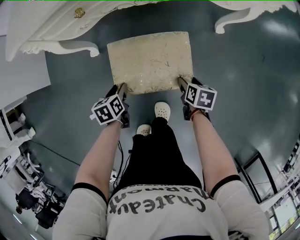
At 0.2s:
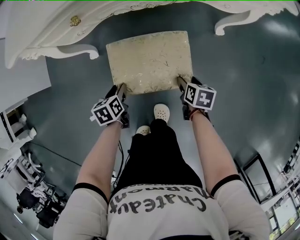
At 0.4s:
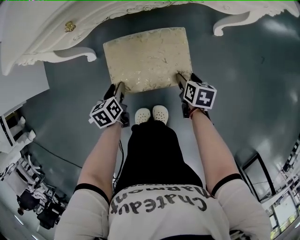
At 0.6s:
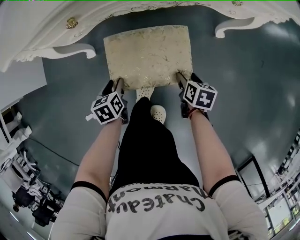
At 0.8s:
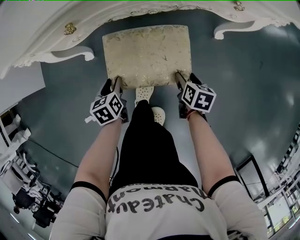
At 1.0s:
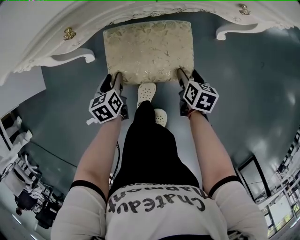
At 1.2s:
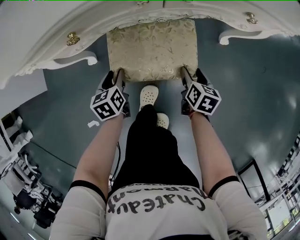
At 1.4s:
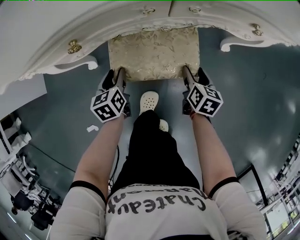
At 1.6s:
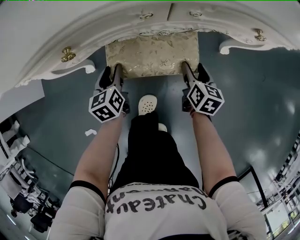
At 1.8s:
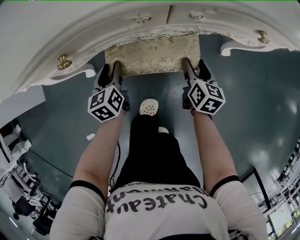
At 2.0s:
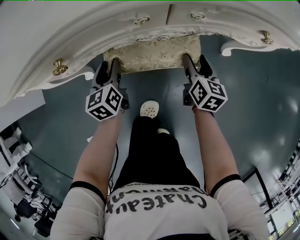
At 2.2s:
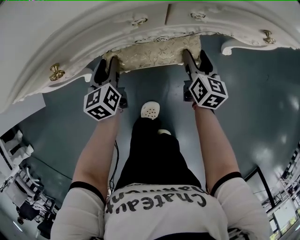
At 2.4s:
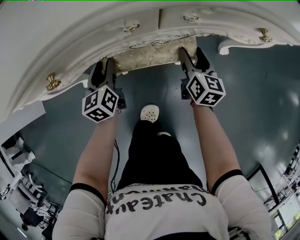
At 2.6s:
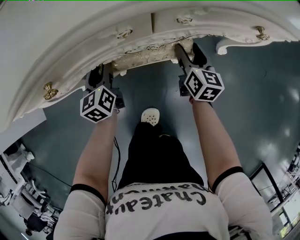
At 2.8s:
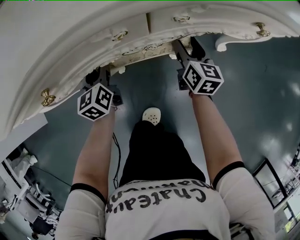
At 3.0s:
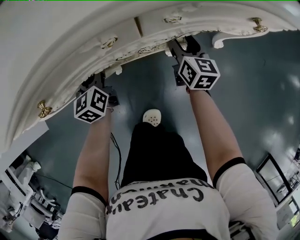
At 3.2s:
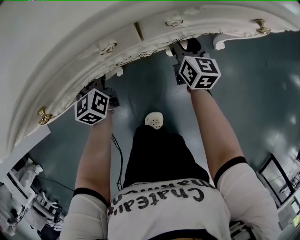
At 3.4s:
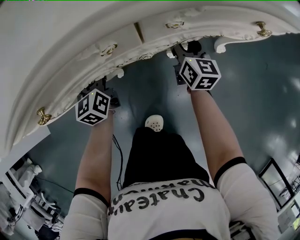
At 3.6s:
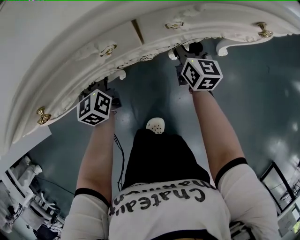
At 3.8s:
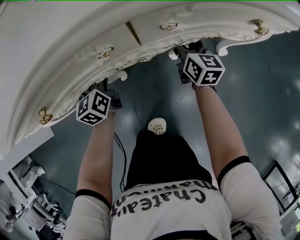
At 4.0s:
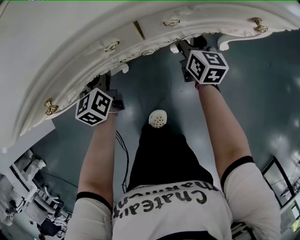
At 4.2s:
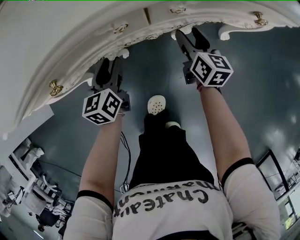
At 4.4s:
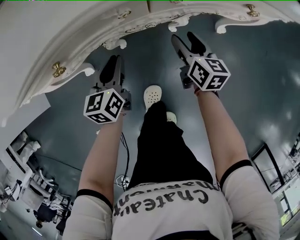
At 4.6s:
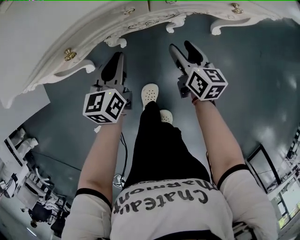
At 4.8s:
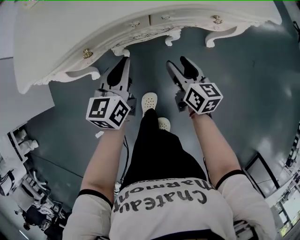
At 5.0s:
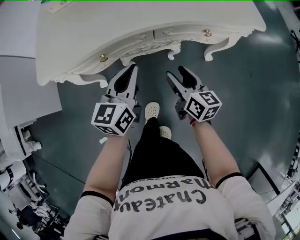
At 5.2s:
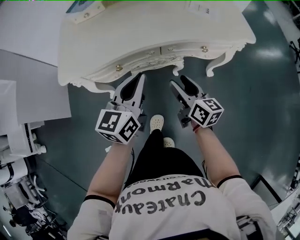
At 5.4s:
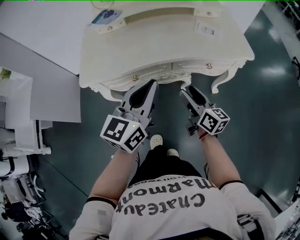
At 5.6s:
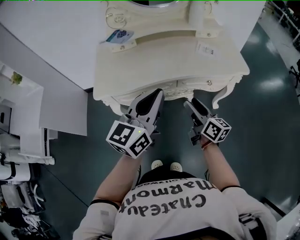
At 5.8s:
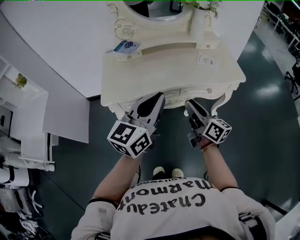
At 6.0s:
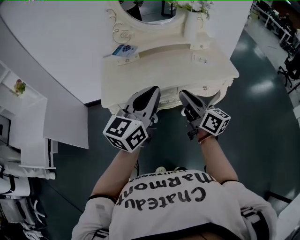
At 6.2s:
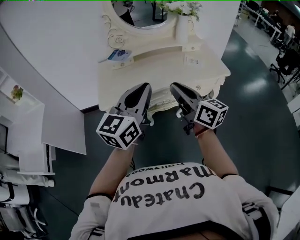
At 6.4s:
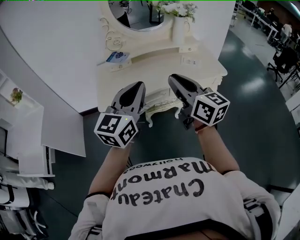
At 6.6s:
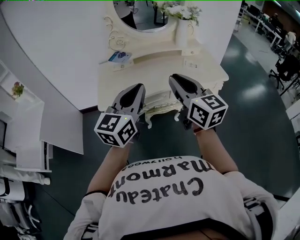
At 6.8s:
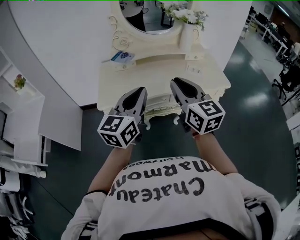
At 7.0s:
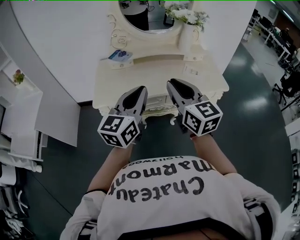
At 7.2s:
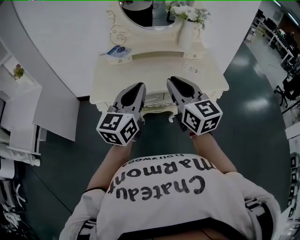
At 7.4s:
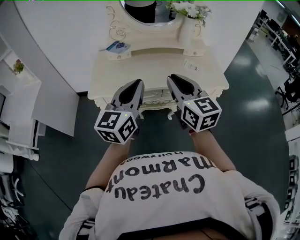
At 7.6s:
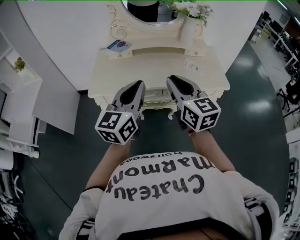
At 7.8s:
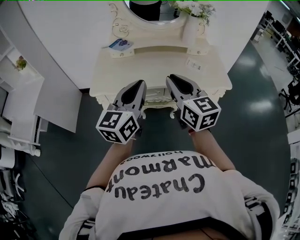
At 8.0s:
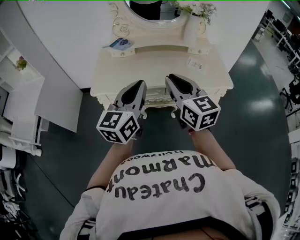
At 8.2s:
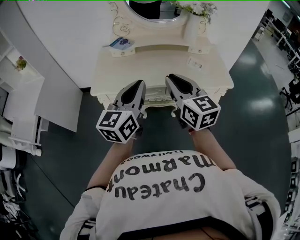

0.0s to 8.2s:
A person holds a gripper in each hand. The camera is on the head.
0.0s to 1.6s: Both grippers move forward, roughly 25 cm. The left gripper swivels approximately 20 degrees. The right gripper changes its angle by approximately 30 degrees.
1.6s to 3.2s: The grippers both shift forward by roughly 15 cm. The right gripper swivels some 20 degrees.
3.2s to 5.0s: Both grippers travel together upward and backward, some 35 cm. The right gripper changes its angle by approximately 20 degrees, while the left gripper swivels some 20 degrees, and closes its fingers.
5.0s to 6.6s: Both grippers move upward, approximately 40 cm. The right gripper swivels approximately 30 degrees, and closes up. The left gripper turns by some 20 degrees.
6.6s to 8.2s: The right gripper moves roughly 5 cm. Meanwhile the left gripper heads to the right, covering approximately 5 cm.

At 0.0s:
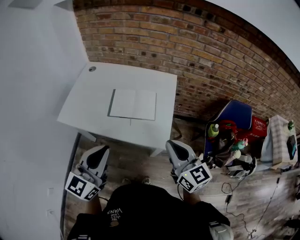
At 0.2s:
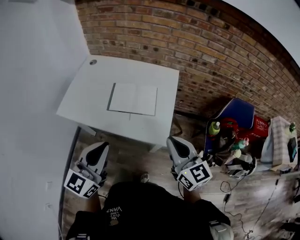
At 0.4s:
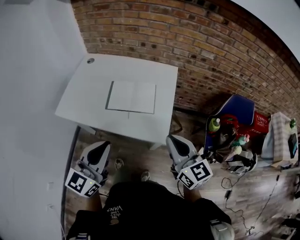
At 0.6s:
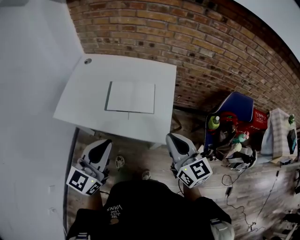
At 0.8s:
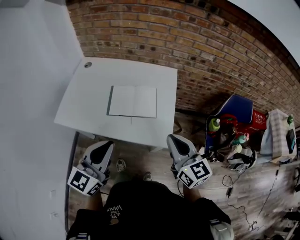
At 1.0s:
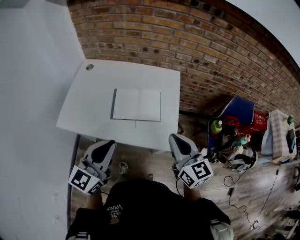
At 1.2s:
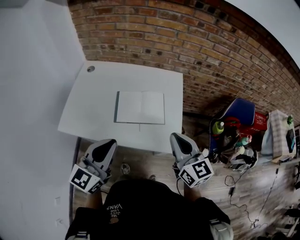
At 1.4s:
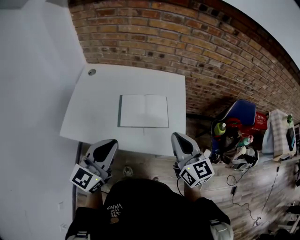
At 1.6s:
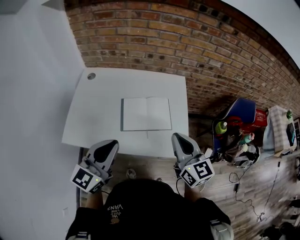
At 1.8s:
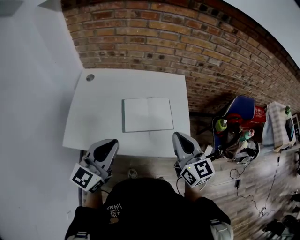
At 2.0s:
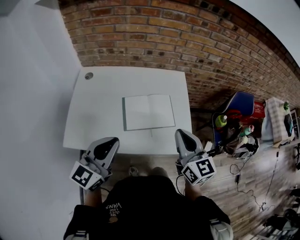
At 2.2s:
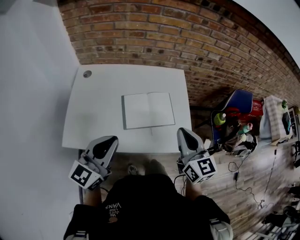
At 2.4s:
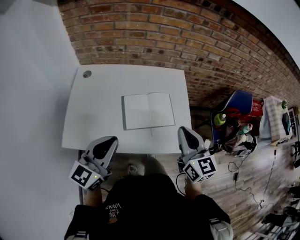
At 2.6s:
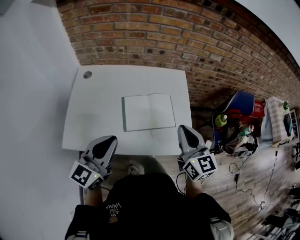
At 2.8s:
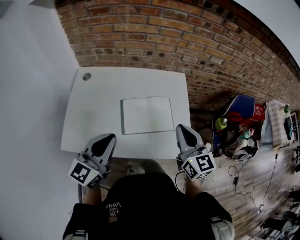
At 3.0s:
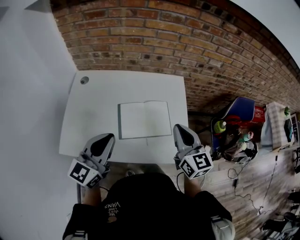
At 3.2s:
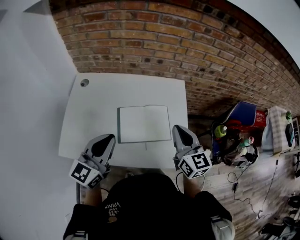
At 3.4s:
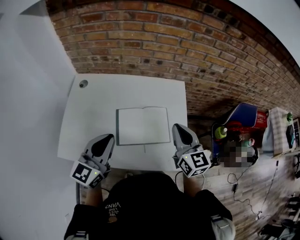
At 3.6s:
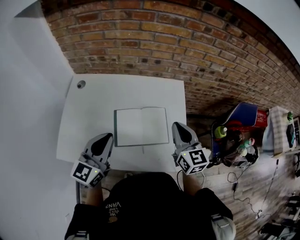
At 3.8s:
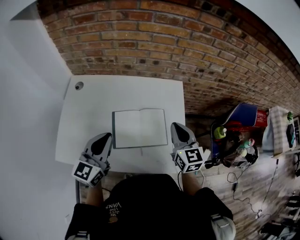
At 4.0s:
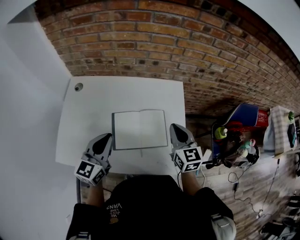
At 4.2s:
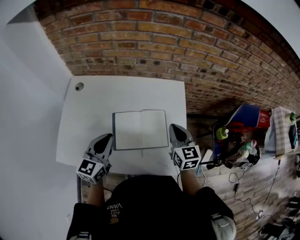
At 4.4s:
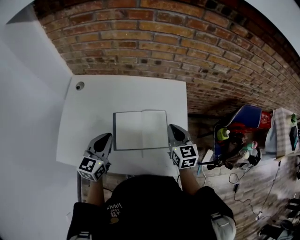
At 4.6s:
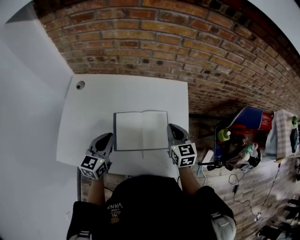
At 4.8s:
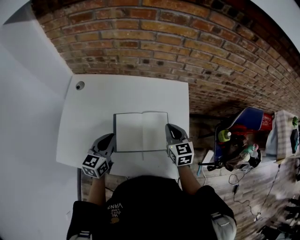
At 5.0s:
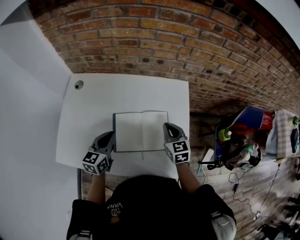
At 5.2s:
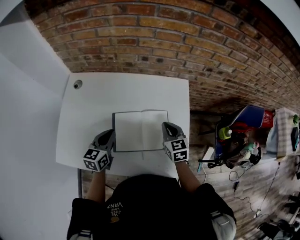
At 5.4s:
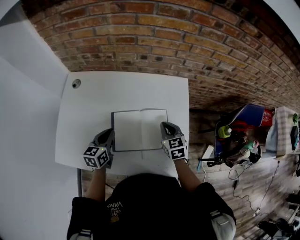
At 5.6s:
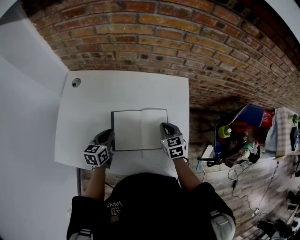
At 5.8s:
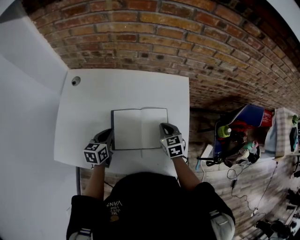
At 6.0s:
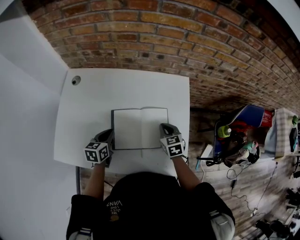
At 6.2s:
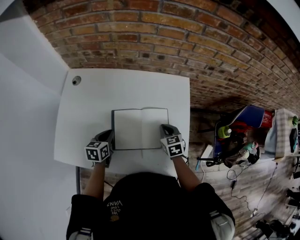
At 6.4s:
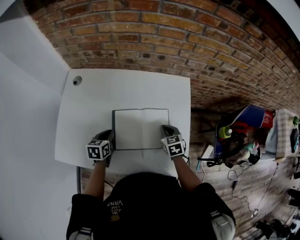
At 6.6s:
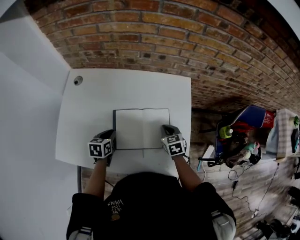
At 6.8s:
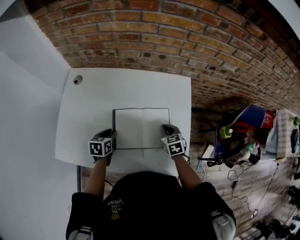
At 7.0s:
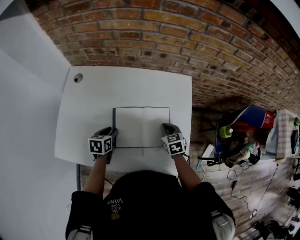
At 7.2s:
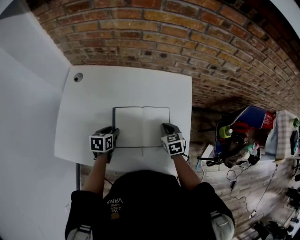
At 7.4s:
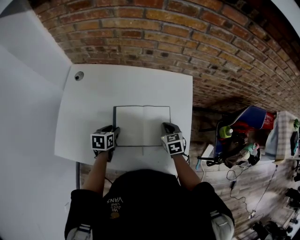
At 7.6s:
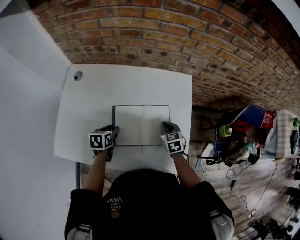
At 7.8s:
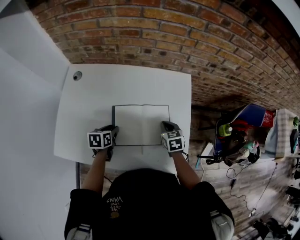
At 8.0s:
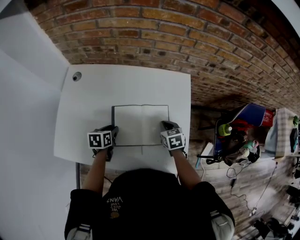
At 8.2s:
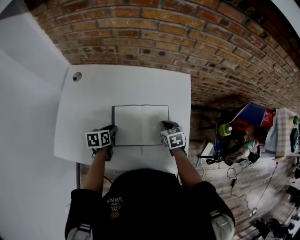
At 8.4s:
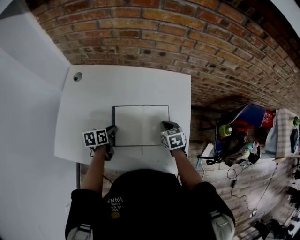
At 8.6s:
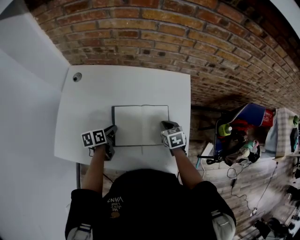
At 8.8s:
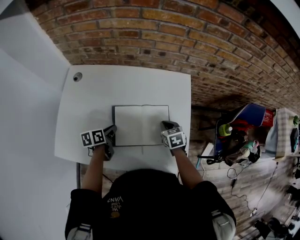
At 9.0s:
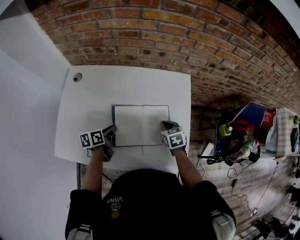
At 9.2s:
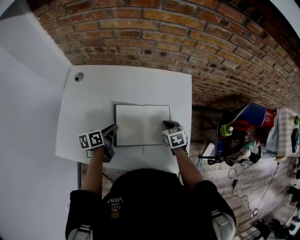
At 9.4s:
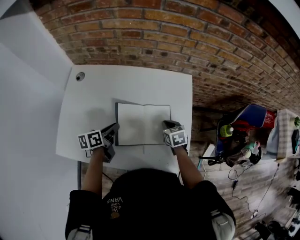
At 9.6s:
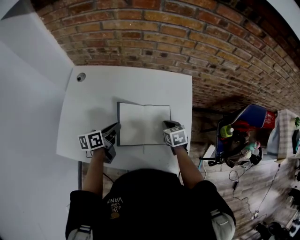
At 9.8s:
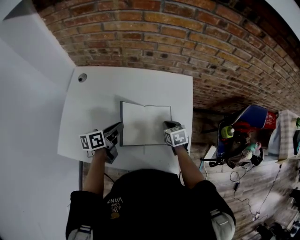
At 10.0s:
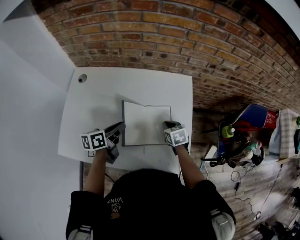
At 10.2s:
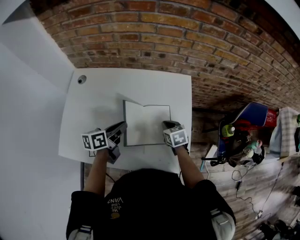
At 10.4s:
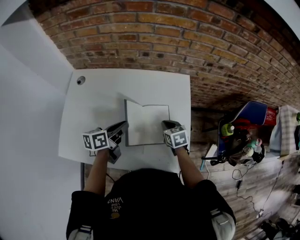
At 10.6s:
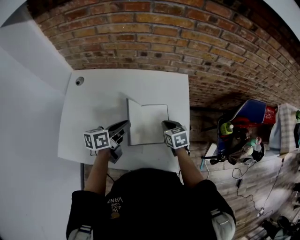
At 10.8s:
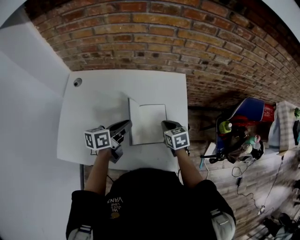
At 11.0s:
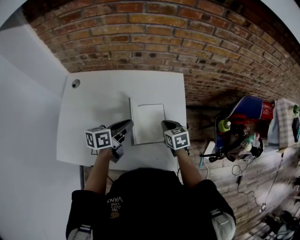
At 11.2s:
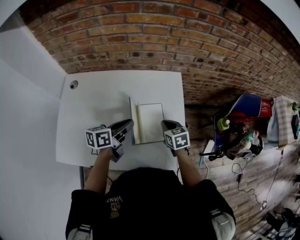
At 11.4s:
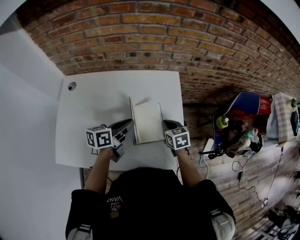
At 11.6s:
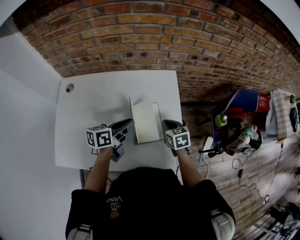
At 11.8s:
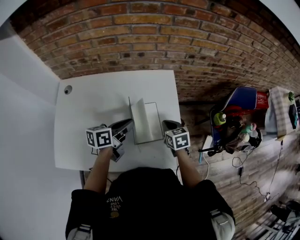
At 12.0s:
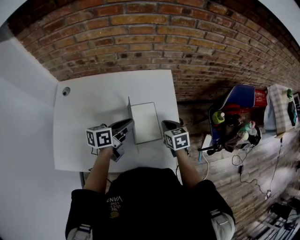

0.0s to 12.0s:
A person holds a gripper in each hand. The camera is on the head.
0.0s to 1.6s: The grippers both shift forward and to the left by some 20 cm.
1.6s to 3.0s: Both grippers move forward, roughly 10 cm.
3.0s to 4.4s: The grippers both shift downward and forward by approximately 15 cm.
4.4s to 6.0s: The grippers both shift downward by about 15 cm. The right gripper turns by roughly 20 degrees; the left gripper rotates some 30 degrees.
6.0s to 7.6s: The left gripper opens up.
7.6s to 9.0s: The left gripper turns by roughly 20 degrees, and closes up.
9.0s to 10.4s: The left gripper heads upward and to the right, covering approximately 15 cm, and swivels roughly 20 degrees.
10.4s to 12.0s: The grippers both shift to the right by about 5 cm.

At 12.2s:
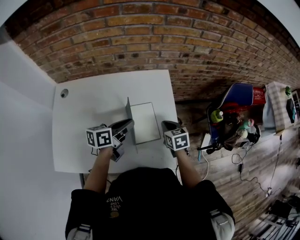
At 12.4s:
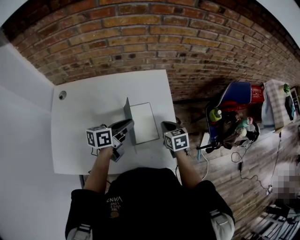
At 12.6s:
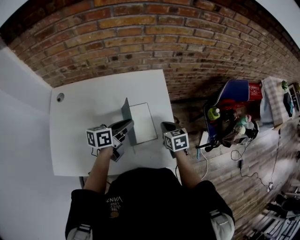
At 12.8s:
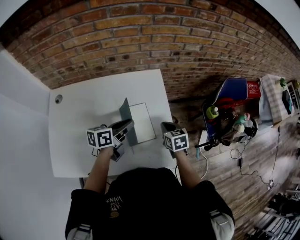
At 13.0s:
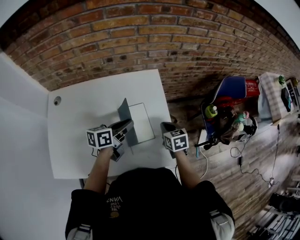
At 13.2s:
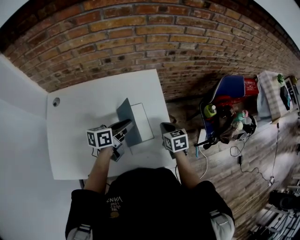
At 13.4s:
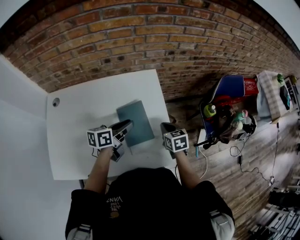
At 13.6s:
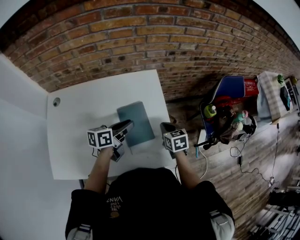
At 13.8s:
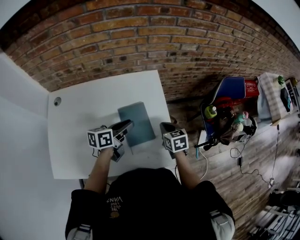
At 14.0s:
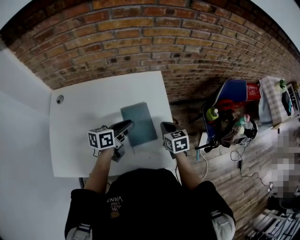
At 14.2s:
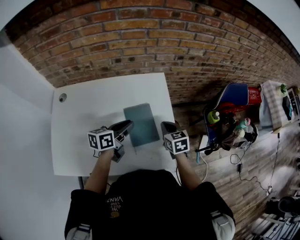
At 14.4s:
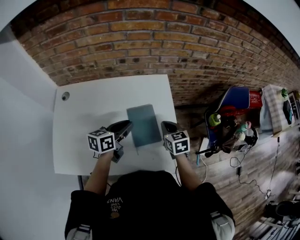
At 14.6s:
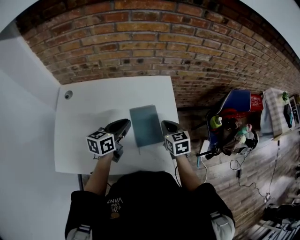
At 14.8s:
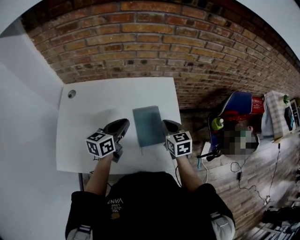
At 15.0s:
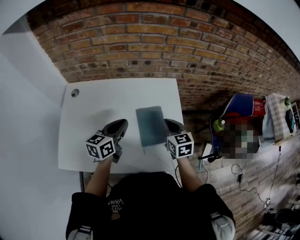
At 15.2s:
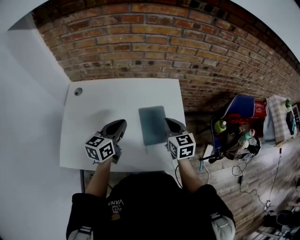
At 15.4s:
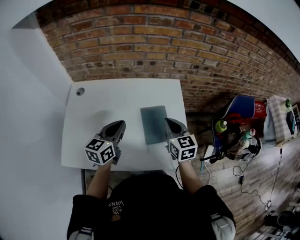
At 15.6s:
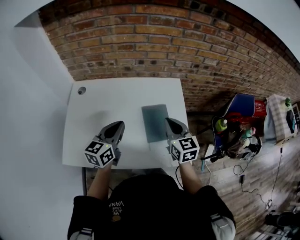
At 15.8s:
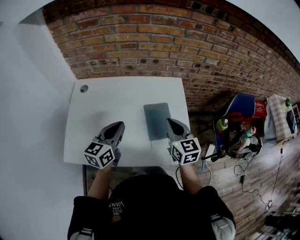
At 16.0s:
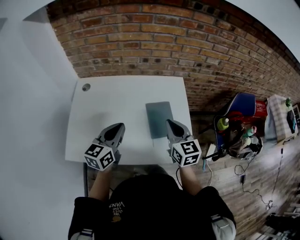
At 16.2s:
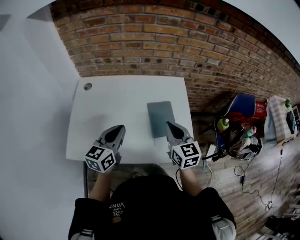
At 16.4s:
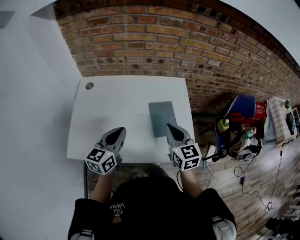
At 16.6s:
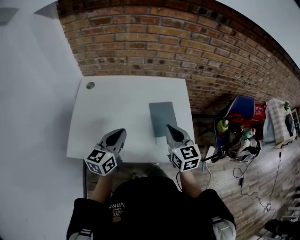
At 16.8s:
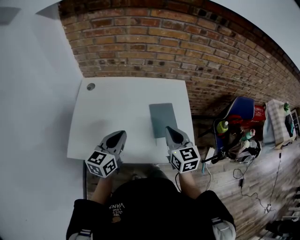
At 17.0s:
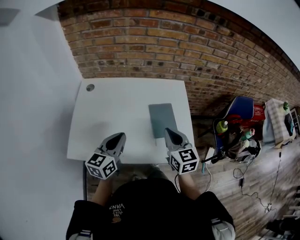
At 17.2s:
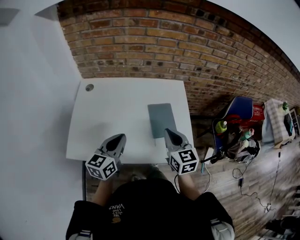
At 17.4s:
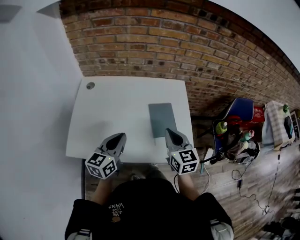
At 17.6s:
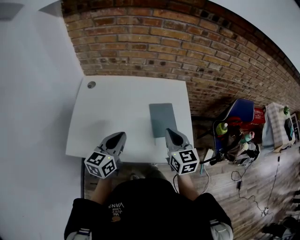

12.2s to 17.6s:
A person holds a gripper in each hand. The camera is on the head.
12.2s to 13.6s: The grippers stay close to where they were, moving slightly.
13.6s to 15.0s: The right gripper is displaced upward and to the left by some 15 cm, while the left gripper shifts approximately 10 cm to the left and upward, and rotates about 30 degrees.
15.0s to 16.2s: The right gripper moves backward, upward and to the left, approximately 15 cm. The left gripper travels backward and to the left by approximately 15 cm.
16.2s to 17.6s: The grippers move only a little.
